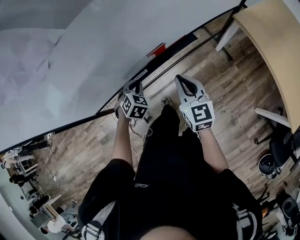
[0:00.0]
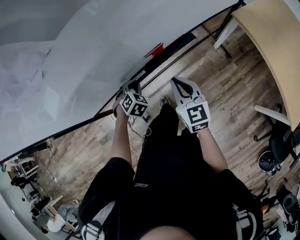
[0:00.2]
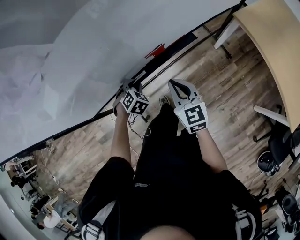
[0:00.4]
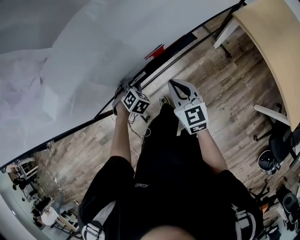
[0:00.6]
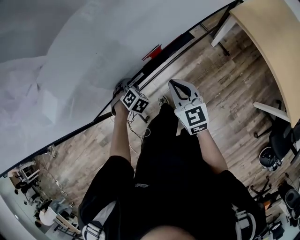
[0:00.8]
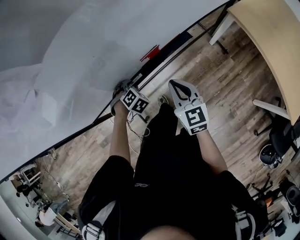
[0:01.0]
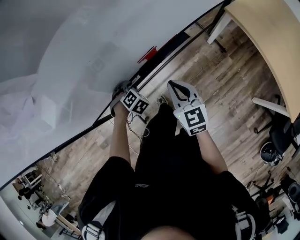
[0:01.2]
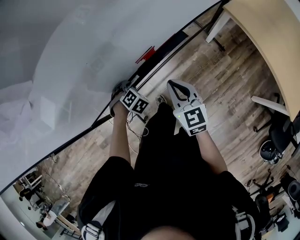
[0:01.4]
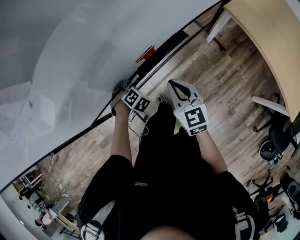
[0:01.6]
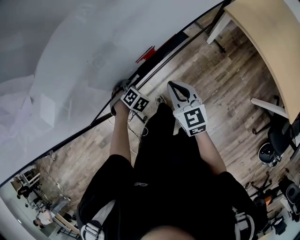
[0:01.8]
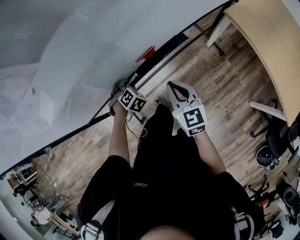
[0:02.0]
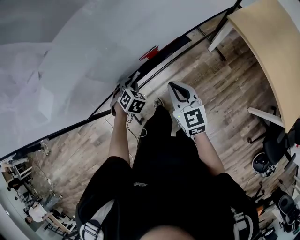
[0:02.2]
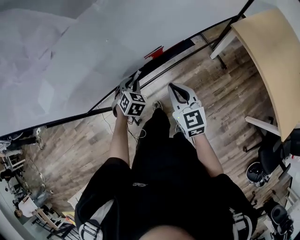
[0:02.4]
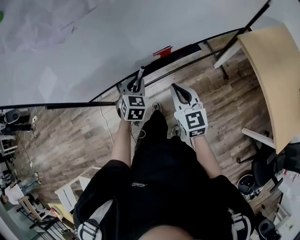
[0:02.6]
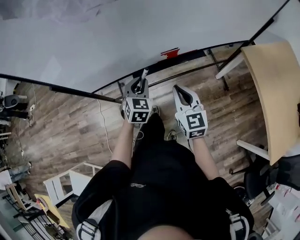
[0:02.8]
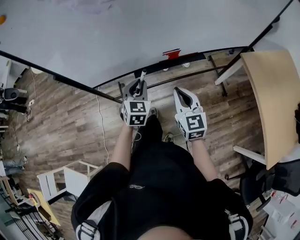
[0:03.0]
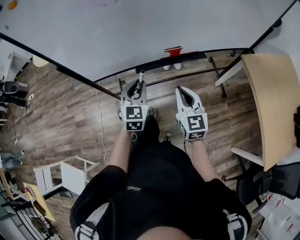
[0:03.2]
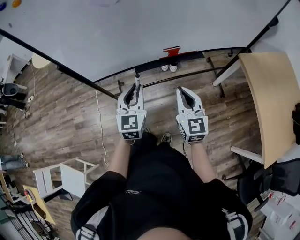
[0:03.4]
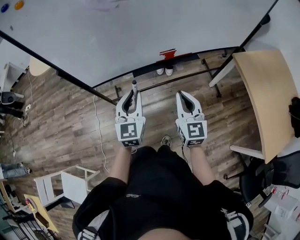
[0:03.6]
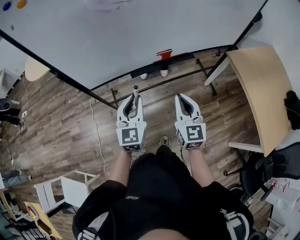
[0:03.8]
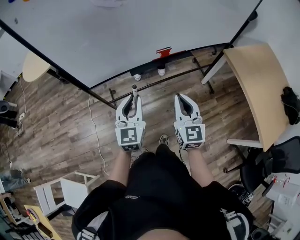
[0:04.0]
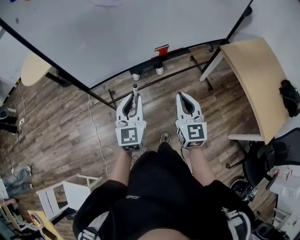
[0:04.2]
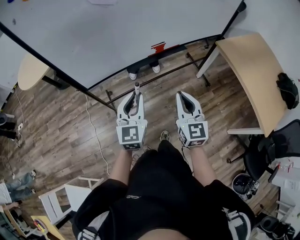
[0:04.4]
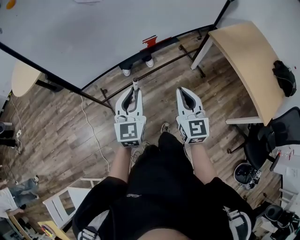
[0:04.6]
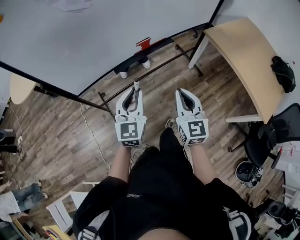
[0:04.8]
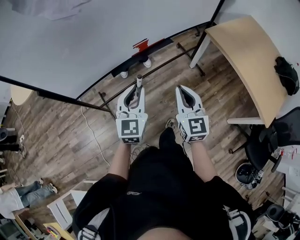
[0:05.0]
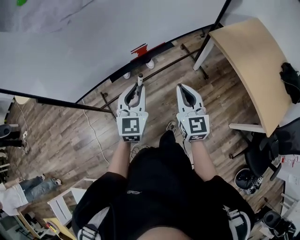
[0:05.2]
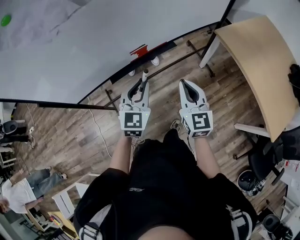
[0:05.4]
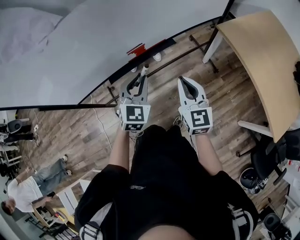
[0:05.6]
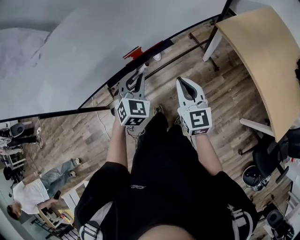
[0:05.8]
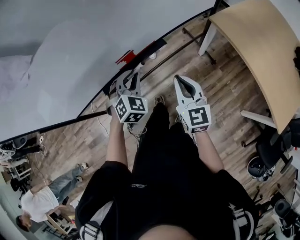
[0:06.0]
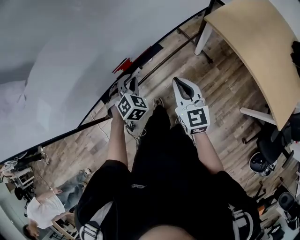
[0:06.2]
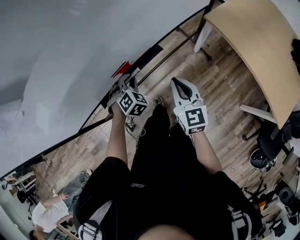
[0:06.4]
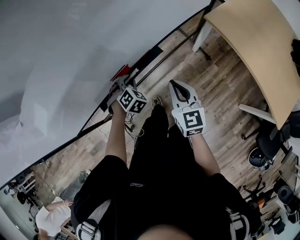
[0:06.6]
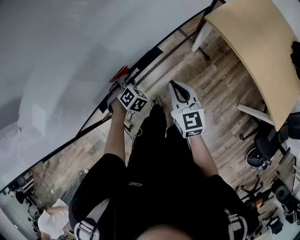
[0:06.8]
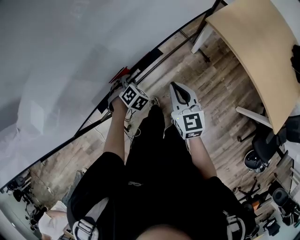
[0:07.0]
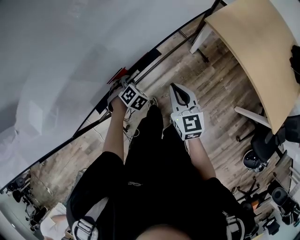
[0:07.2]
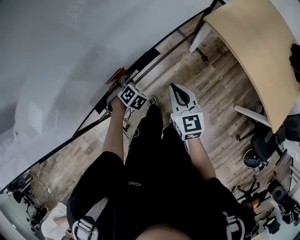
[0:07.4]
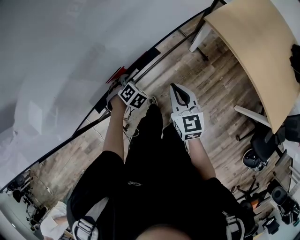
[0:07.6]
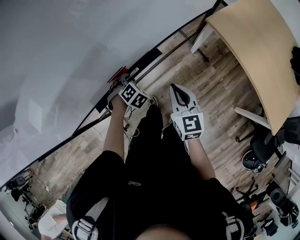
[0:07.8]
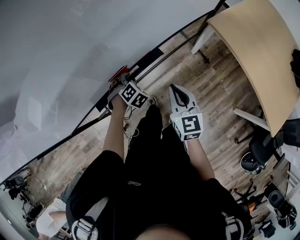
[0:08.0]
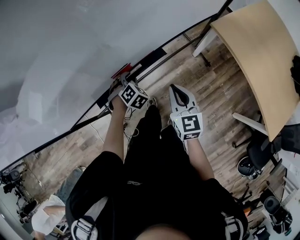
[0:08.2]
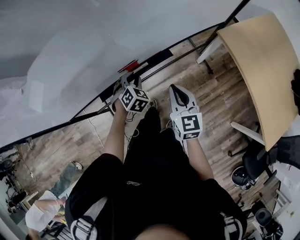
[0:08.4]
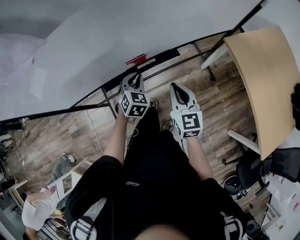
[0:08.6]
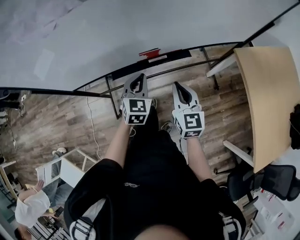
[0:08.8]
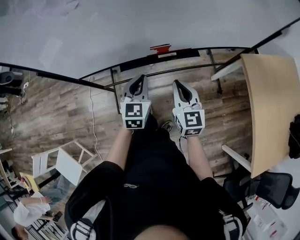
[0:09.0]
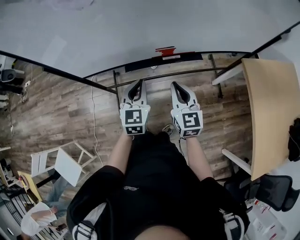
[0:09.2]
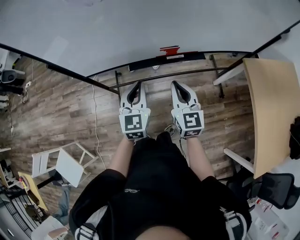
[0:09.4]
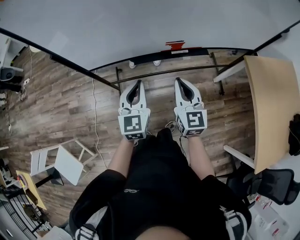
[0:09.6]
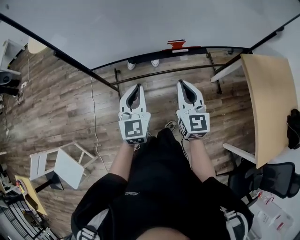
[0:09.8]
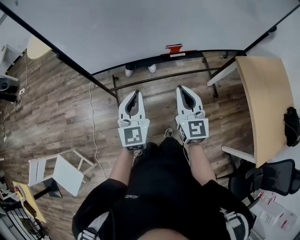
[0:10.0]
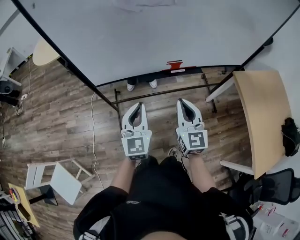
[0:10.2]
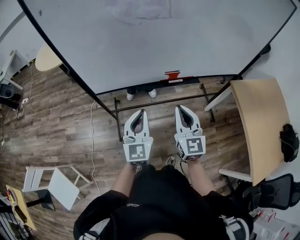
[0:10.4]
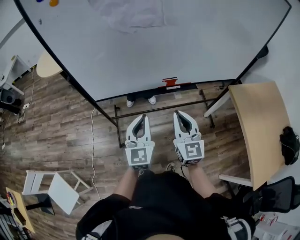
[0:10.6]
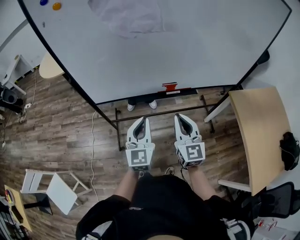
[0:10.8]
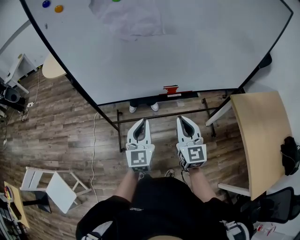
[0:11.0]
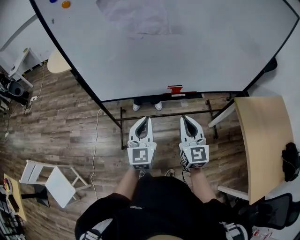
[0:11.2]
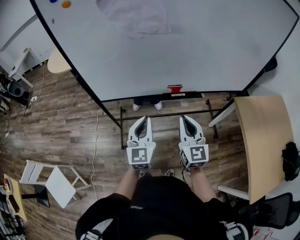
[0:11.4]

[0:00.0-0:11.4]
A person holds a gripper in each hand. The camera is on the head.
0:00.0 to 0:01.4: The left gripper heads downward, covering about 10 cm, and swivels roughly 20 degrees.
0:01.4 to 0:02.8: The right gripper heads backward, upward and to the left, covering roughly 10 cm. The left gripper travels upward and backward by roughly 20 cm, and angles its fingers upward, by about 30 degrees.
0:02.8 to 0:04.2: Both grippers move backward and upward, roughly 20 cm. The left gripper turns by roughly 30 degrees.
0:04.2 to 0:05.6: The two grippers go about 25 cm forward and to the right. The left gripper changes its angle by about 30 degrees.
0:05.6 to 0:07.2: The left gripper heads downward and forward, covering approximately 30 cm, and tilts its fingers approximately 40 degrees downward. Meanwhile the right gripper is displaced forward and downward by some 15 cm.
0:07.2 to 0:08.6: The right gripper moves to the left, roughly 5 cm. The left gripper moves upward and backward, about 10 cm, and rotates about 40 degrees.
0:08.6 to 0:10.0: The left gripper travels backward, to the left and upward by about 35 cm, and angles its fingers upward, by some 30 degrees, while the right gripper travels to the left, backward and upward by approximately 25 cm.
0:10.0 to 0:11.4: The left gripper is displaced to the right by roughly 5 cm; the right gripper moves approximately 5 cm.

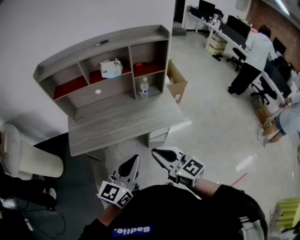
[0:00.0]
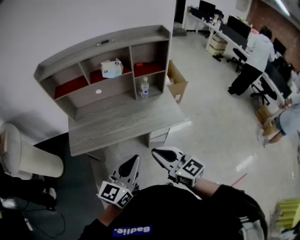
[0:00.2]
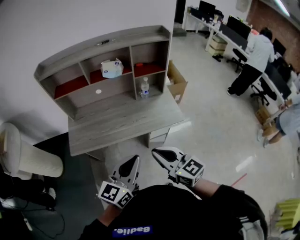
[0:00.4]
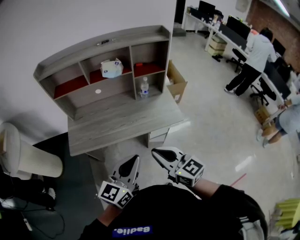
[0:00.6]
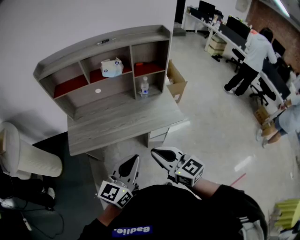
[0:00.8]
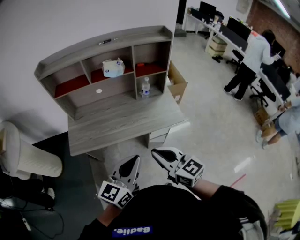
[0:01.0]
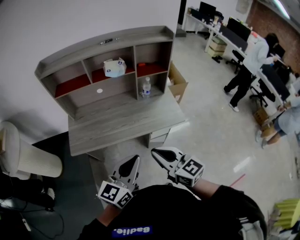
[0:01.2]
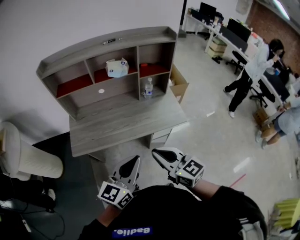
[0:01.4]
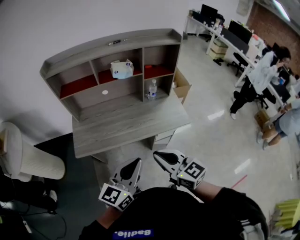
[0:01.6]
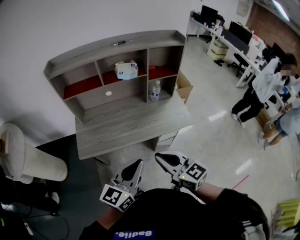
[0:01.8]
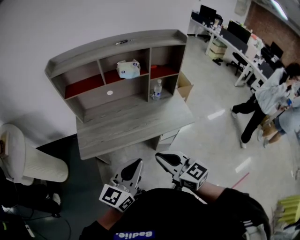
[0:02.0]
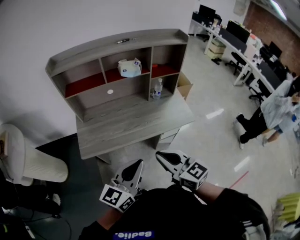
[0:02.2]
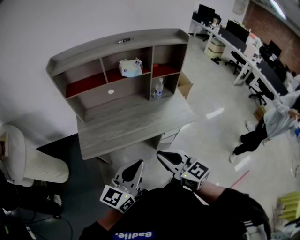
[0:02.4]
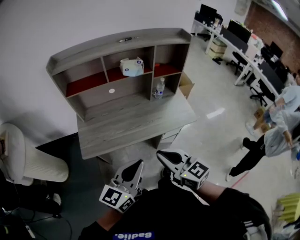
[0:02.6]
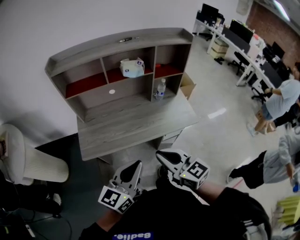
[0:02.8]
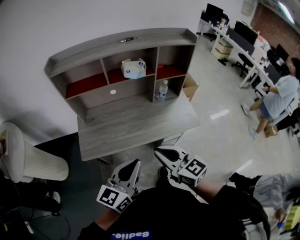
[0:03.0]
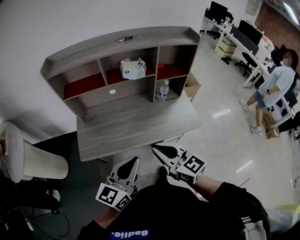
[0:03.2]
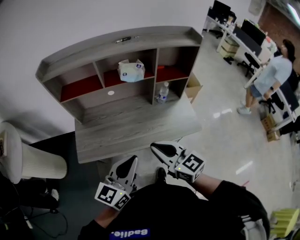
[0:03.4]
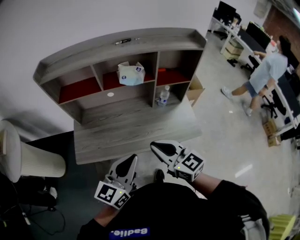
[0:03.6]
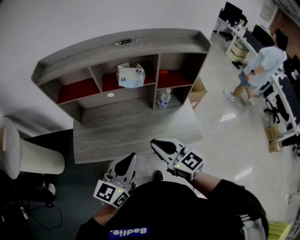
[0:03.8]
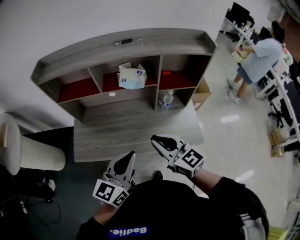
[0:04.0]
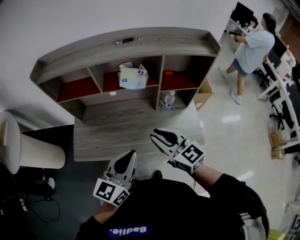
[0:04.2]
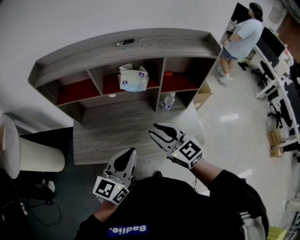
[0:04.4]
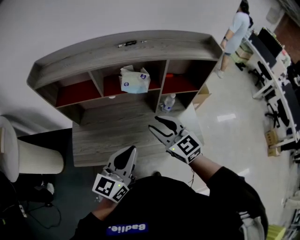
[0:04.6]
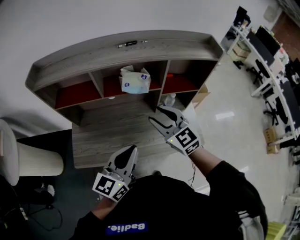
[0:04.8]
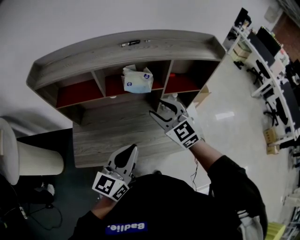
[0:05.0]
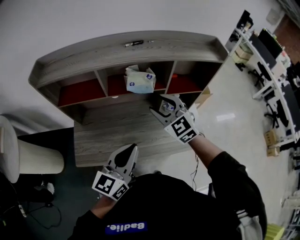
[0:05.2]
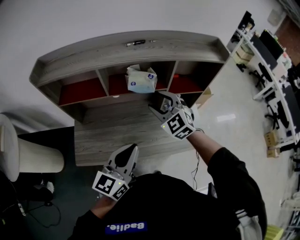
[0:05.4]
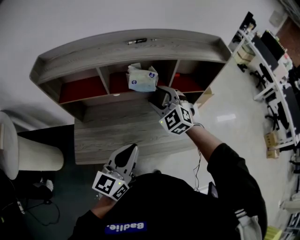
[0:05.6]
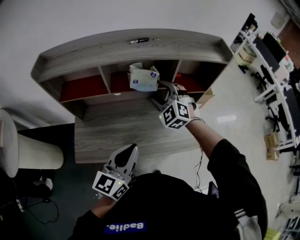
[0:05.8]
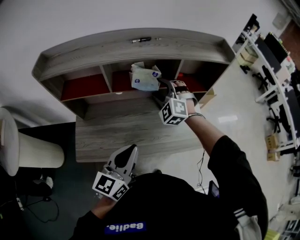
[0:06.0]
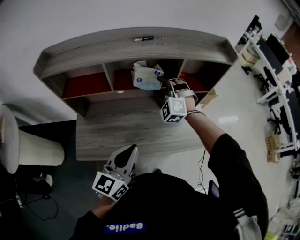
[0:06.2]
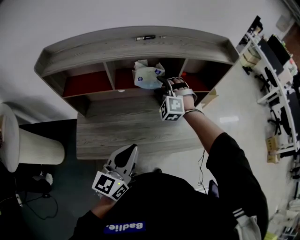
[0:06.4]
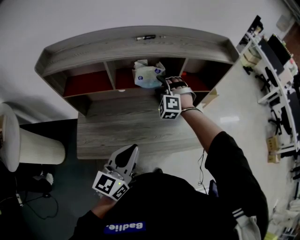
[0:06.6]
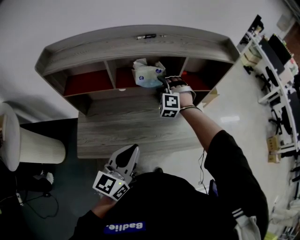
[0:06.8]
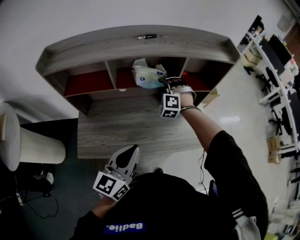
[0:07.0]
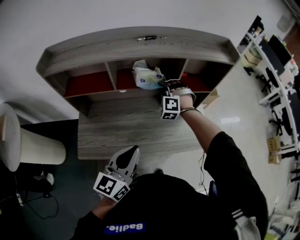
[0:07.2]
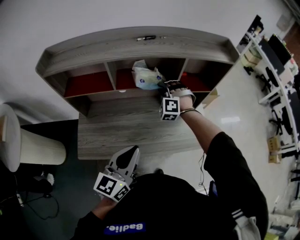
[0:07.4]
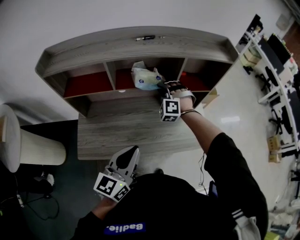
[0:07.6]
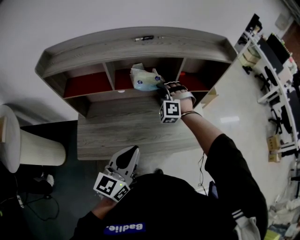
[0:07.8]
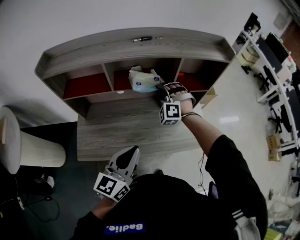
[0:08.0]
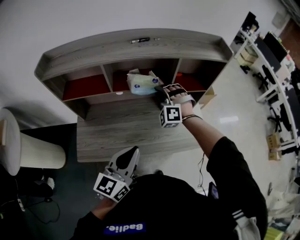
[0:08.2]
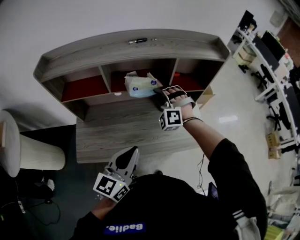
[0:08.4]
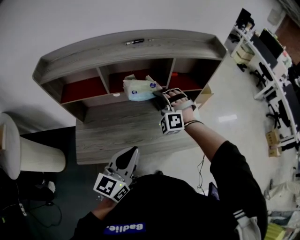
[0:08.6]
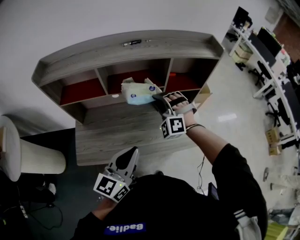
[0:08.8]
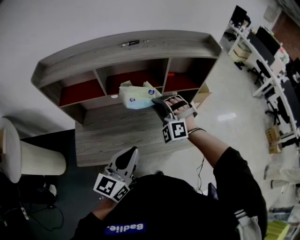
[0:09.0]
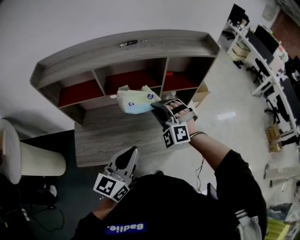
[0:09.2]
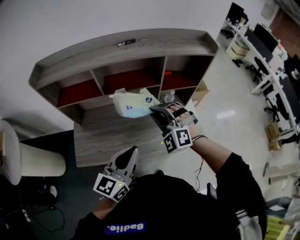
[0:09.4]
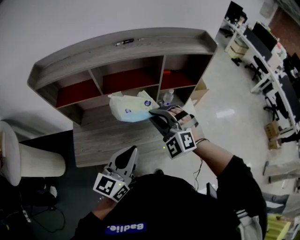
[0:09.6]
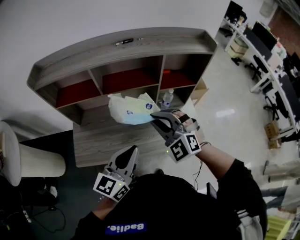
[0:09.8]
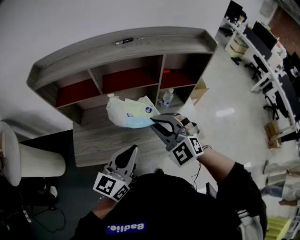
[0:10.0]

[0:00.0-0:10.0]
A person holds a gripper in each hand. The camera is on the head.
0:00.0 to 0:01.4: The grippers stay close to where they were, moving slightly.
0:01.4 to 0:02.8: Both grippers move to the left, roughly 10 cm.
0:02.8 to 0:04.2: Both grippers move forward and to the right, some 25 cm.
0:04.2 to 0:05.8: The right gripper shifts roughly 20 cm forward, twists roughly 50 degrees counterclockwise, seen from behind, and opens its fingers. The left gripper ends up about 5 cm from where it was.
0:05.8 to 0:07.2: The right gripper heads downward and forward, covering roughly 10 cm, changes its angle by some 30 degrees, and closes up.
0:07.2 to 0:08.6: The right gripper heads backward, covering approximately 5 cm.
0:08.6 to 0:10.0: The right gripper heads backward and upward, covering roughly 15 cm, and rotates some 40 degrees.

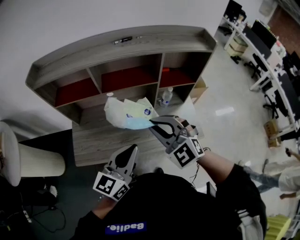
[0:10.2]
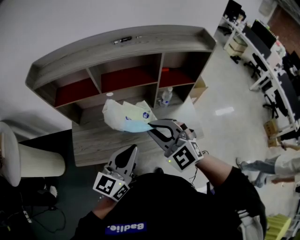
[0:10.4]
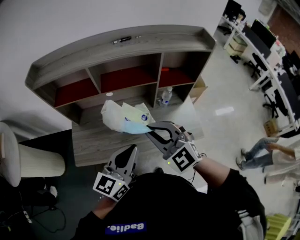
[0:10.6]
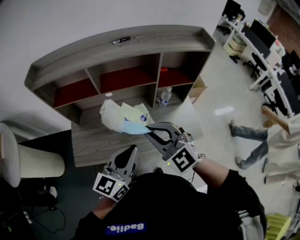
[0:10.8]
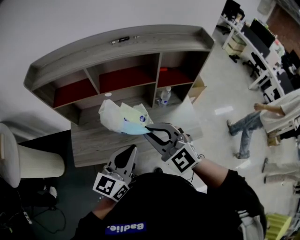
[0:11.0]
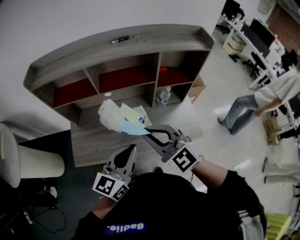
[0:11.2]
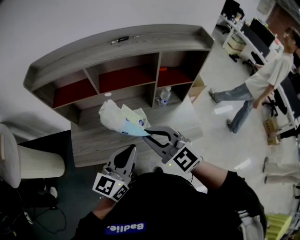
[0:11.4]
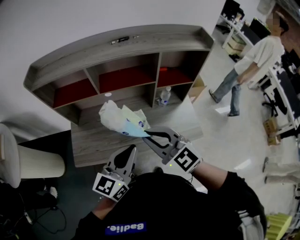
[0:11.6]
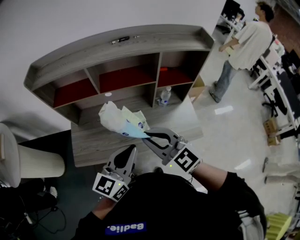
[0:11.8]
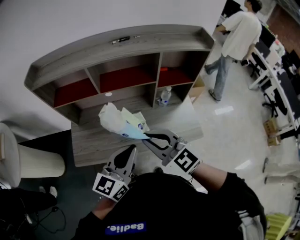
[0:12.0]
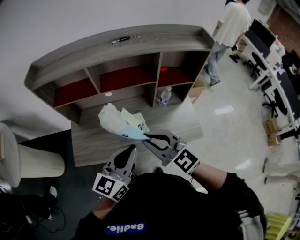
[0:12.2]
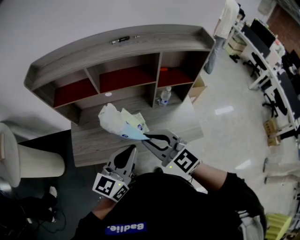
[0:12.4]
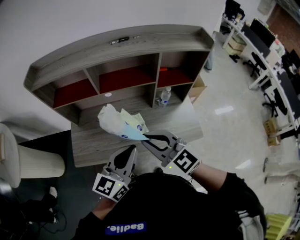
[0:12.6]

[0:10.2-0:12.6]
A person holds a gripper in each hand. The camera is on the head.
0:10.2 to 0:11.4: The right gripper swivels some 20 degrees.
0:11.4 to 0:12.6: The grippers make only small movements.
